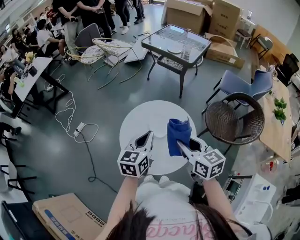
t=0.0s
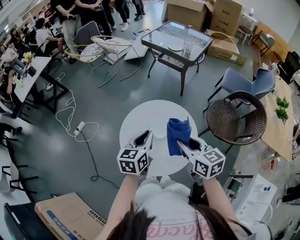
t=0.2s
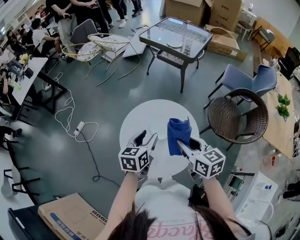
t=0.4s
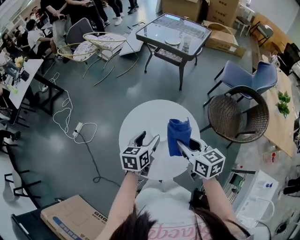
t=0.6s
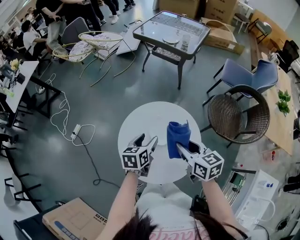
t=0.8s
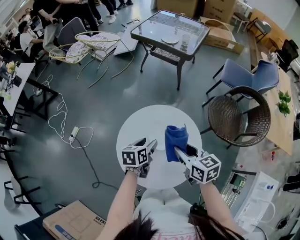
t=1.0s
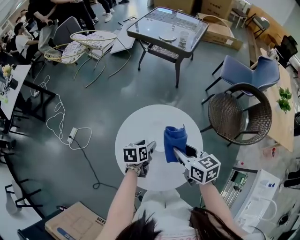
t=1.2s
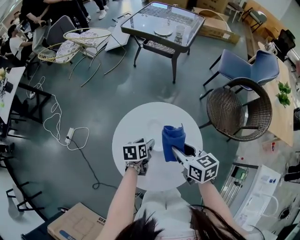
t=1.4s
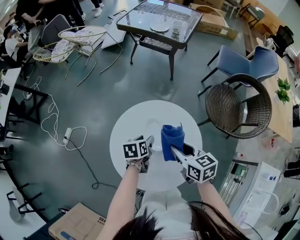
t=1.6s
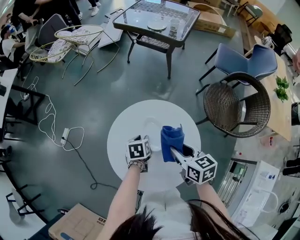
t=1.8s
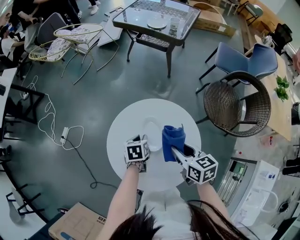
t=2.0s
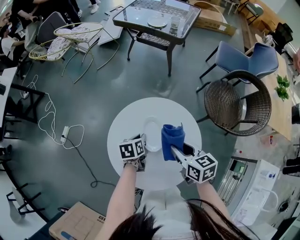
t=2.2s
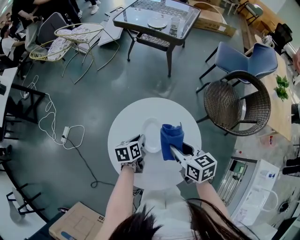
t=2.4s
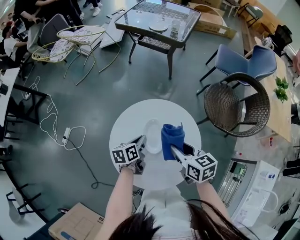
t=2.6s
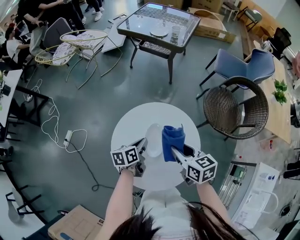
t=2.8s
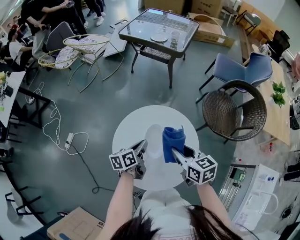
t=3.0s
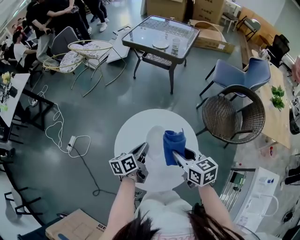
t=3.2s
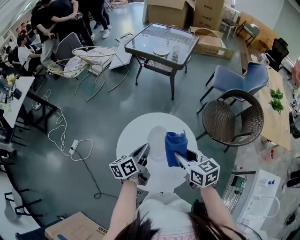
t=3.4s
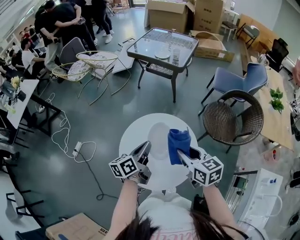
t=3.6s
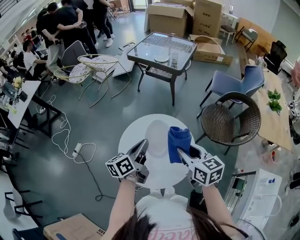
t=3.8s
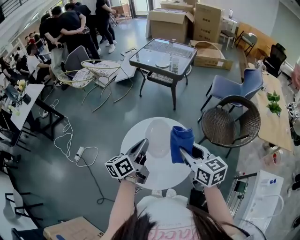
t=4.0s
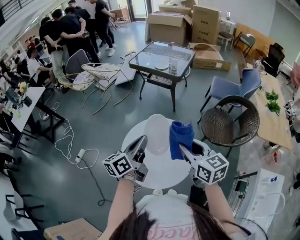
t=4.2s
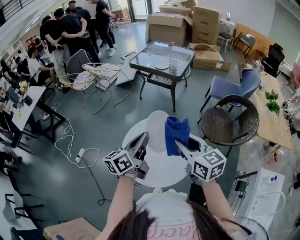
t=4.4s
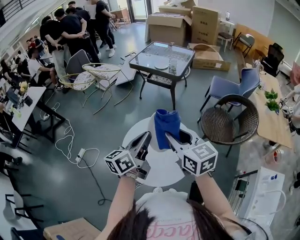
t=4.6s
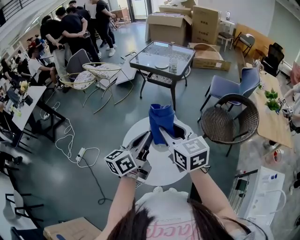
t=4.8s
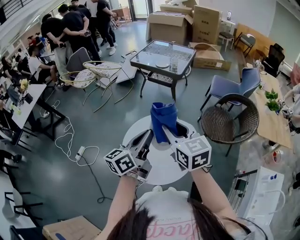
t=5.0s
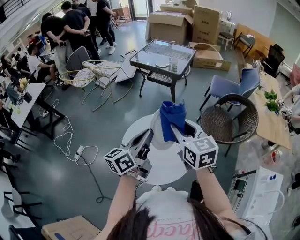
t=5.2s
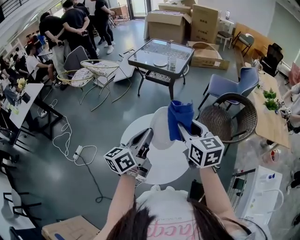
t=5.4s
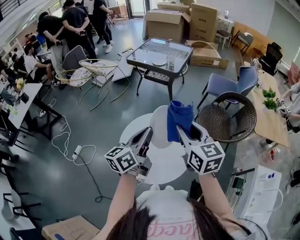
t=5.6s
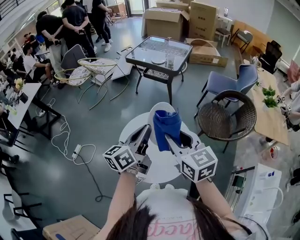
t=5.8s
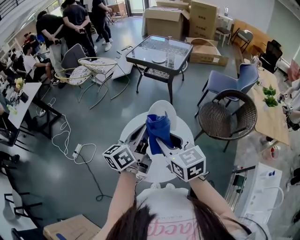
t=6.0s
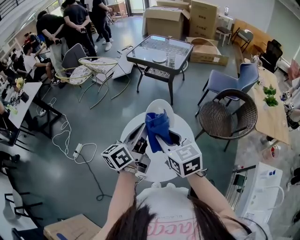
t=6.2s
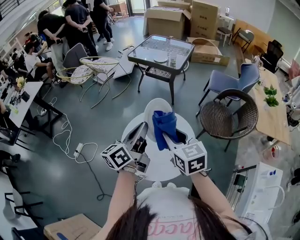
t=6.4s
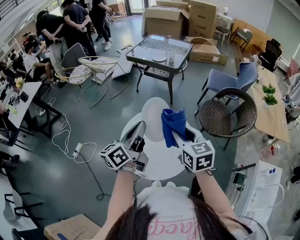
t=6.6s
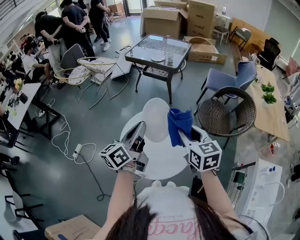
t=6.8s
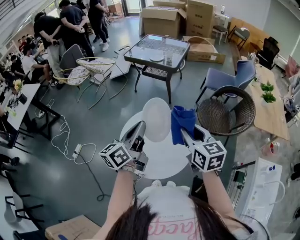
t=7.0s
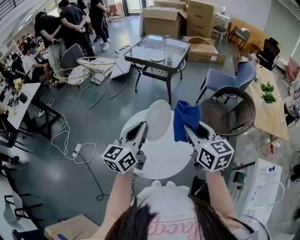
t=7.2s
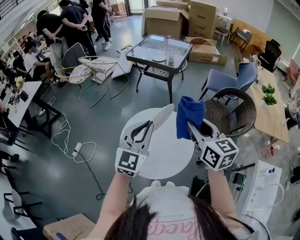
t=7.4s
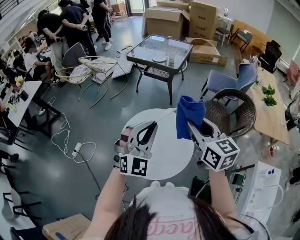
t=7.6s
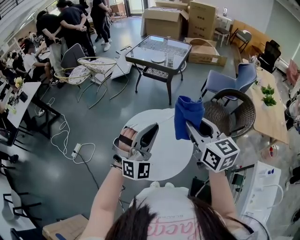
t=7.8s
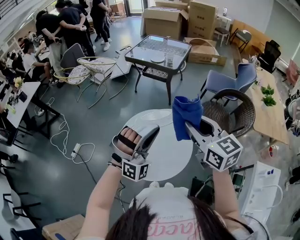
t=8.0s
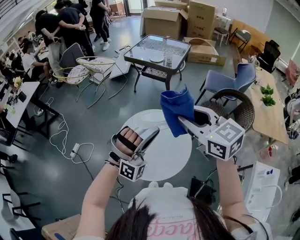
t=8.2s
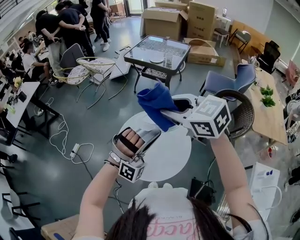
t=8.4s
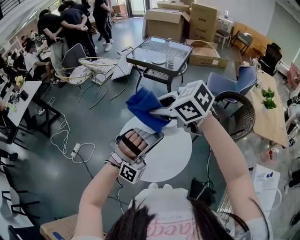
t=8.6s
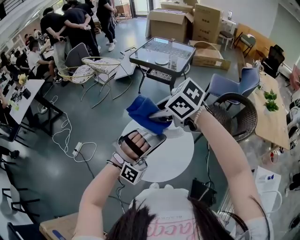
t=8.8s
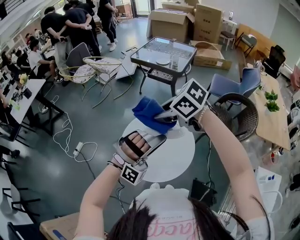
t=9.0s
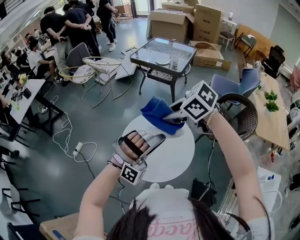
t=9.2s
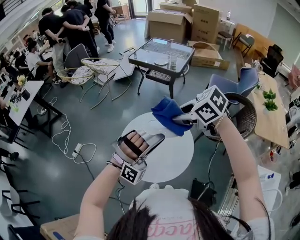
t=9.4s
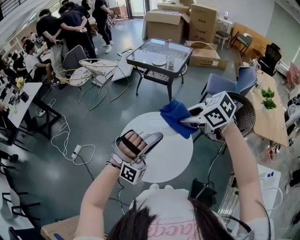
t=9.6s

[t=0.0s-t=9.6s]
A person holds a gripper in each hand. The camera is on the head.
t=0.0s to t=1.6s: The right gripper is displaced downward and forward by about 20 cm. The left gripper shifts roughly 30 cm downward and forward, tips its fingers downward by roughly 30 degrees, and opens its fingers.
t=1.6s to t=3.2s: The left gripper travels upward by about 10 cm, turns by some 30 degrees, and closes, while the right gripper moves upward, about 5 cm.
t=3.2s to t=4.8s: Both grippers move upward, approximately 20 cm. The right gripper rotates some 20 degrees, while the left gripper changes its angle by some 30 degrees.
t=4.8s to t=6.4s: The right gripper heads downward, covering some 5 cm, and travels to the right and back again, about 5 cm each way.
t=6.4s to t=8.0s: The right gripper moves upward and to the right, roughly 10 cm, while the left gripper travels to the right by roughly 5 cm, and twists roughly 130 degrees clockwise, seen from behind.
t=8.0s to t=9.6s: The right gripper goes to the left and returns, approximately 15 cm each way, and turns by some 50 degrees.

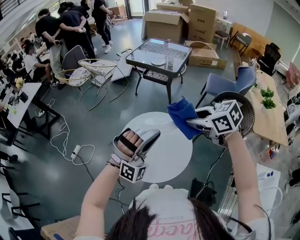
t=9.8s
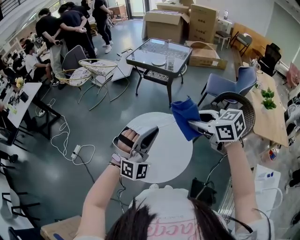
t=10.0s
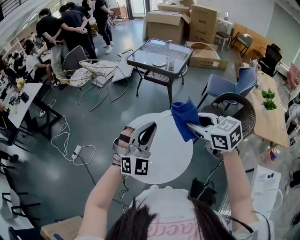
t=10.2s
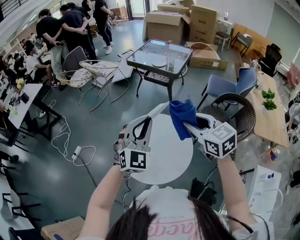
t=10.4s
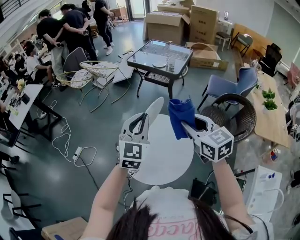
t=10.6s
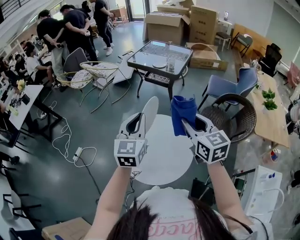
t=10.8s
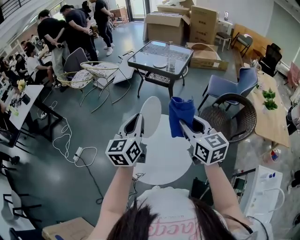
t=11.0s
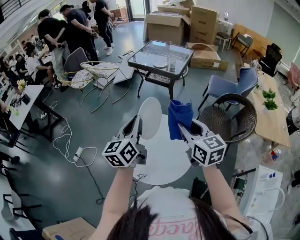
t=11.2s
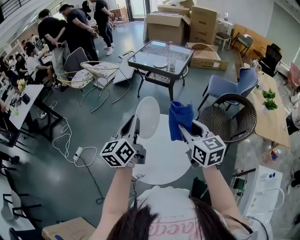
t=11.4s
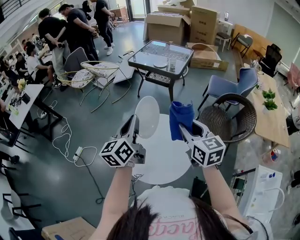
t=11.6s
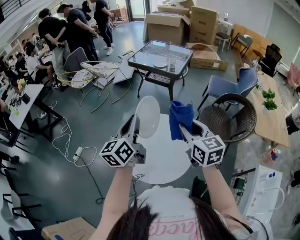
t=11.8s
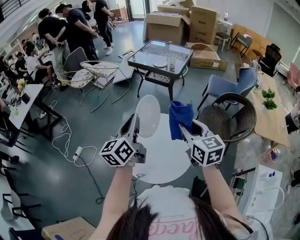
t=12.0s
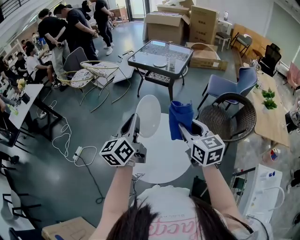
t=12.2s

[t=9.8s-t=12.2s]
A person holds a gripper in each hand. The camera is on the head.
t=9.8s to t=11.0s: The right gripper turns by roughly 40 degrees; the left gripper is displaced forward and to the left by approximately 10 cm, and rotates around the line of its fingers by approximately 100 degrees, counterclockwise from behind.
t=11.0s to t=12.2s: The grippers stay close to where they were, moving slightly.

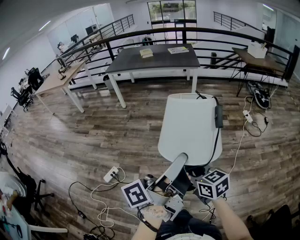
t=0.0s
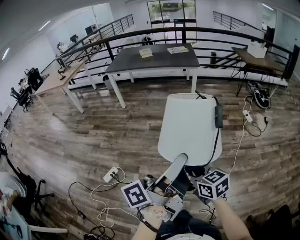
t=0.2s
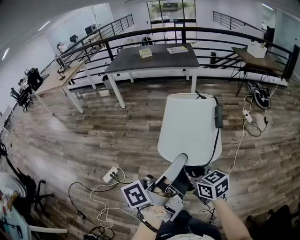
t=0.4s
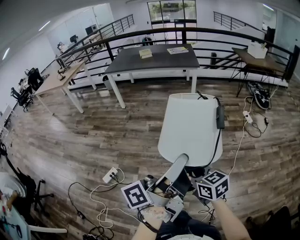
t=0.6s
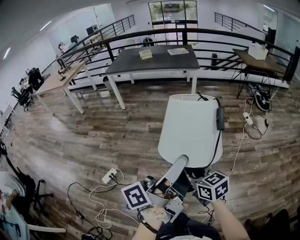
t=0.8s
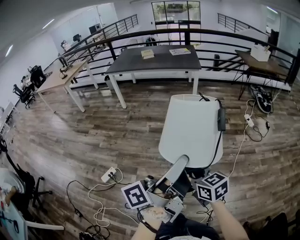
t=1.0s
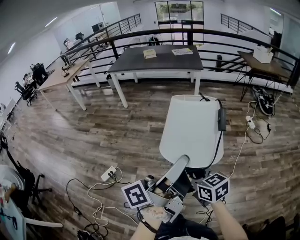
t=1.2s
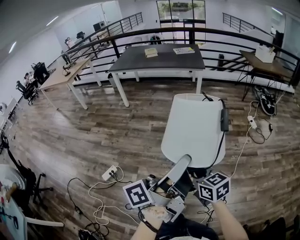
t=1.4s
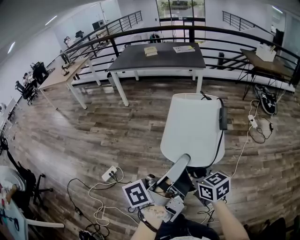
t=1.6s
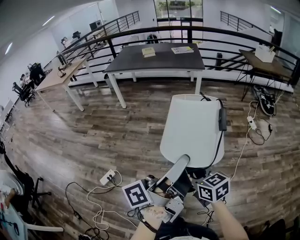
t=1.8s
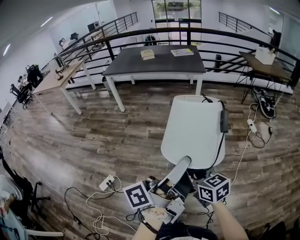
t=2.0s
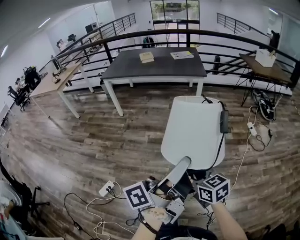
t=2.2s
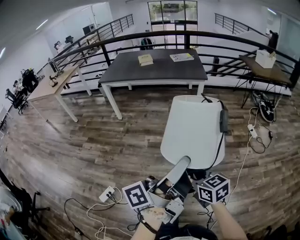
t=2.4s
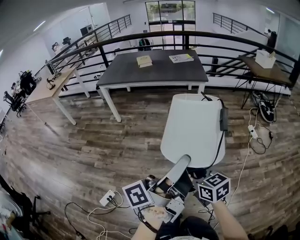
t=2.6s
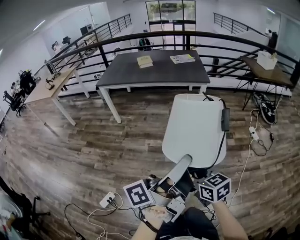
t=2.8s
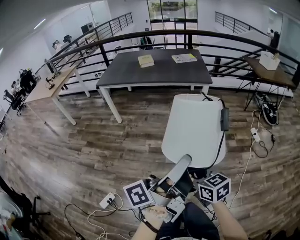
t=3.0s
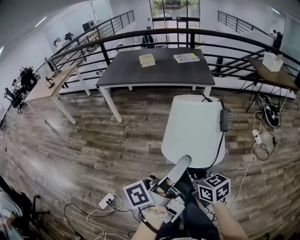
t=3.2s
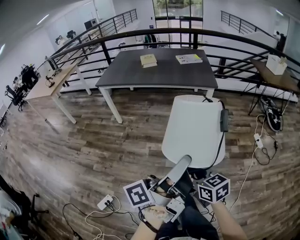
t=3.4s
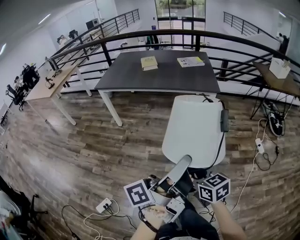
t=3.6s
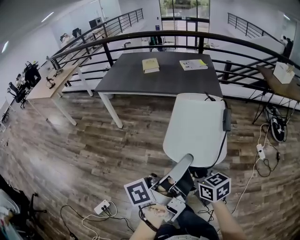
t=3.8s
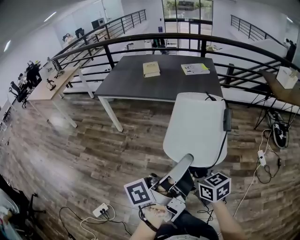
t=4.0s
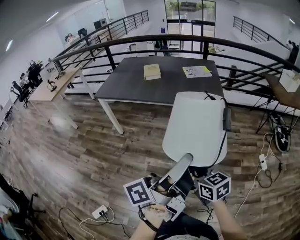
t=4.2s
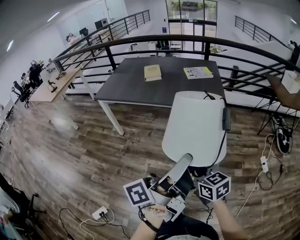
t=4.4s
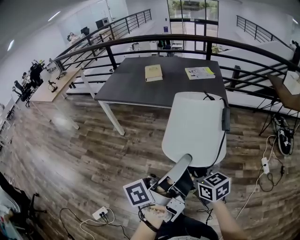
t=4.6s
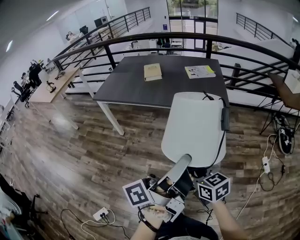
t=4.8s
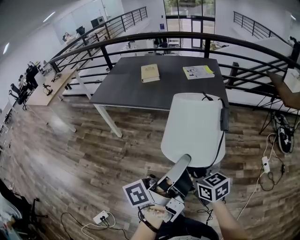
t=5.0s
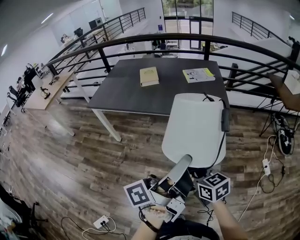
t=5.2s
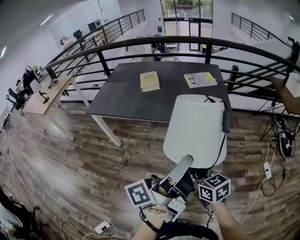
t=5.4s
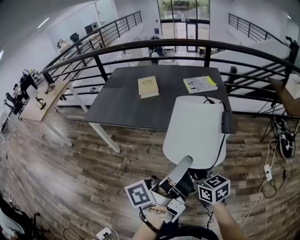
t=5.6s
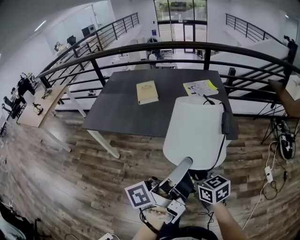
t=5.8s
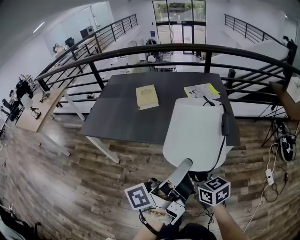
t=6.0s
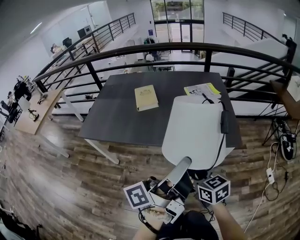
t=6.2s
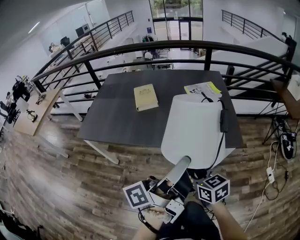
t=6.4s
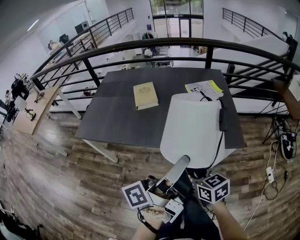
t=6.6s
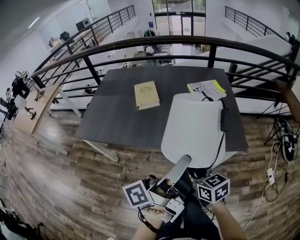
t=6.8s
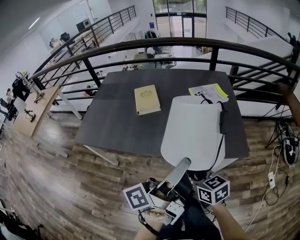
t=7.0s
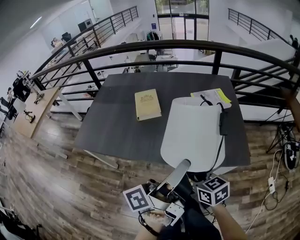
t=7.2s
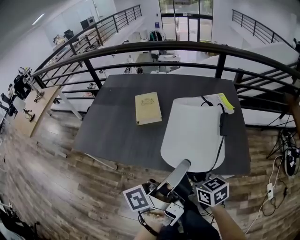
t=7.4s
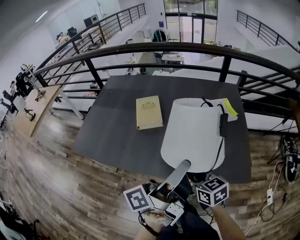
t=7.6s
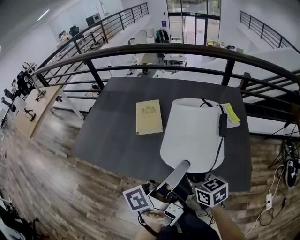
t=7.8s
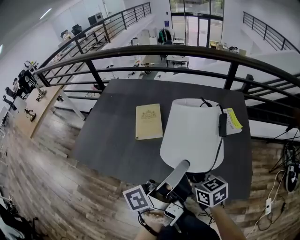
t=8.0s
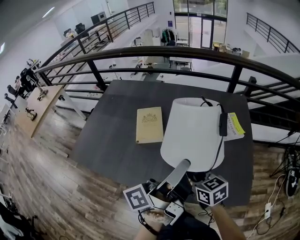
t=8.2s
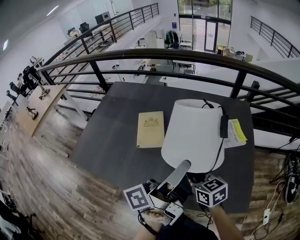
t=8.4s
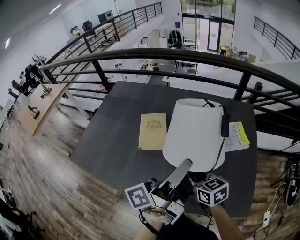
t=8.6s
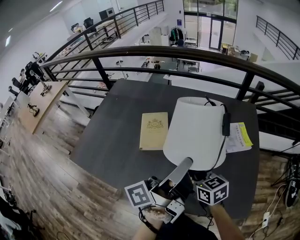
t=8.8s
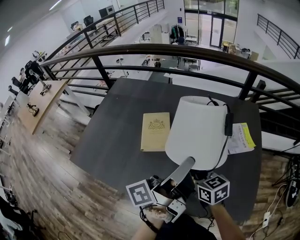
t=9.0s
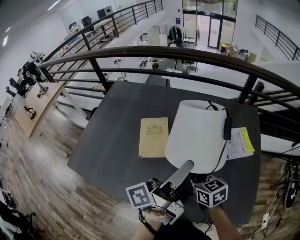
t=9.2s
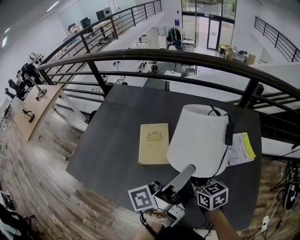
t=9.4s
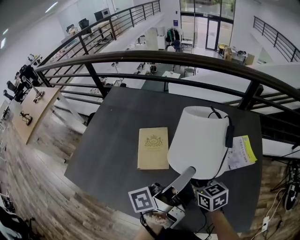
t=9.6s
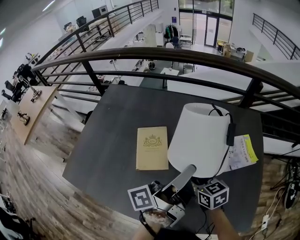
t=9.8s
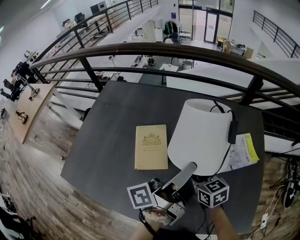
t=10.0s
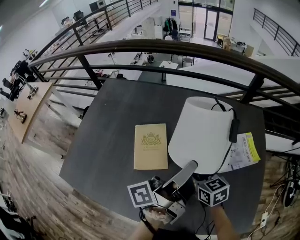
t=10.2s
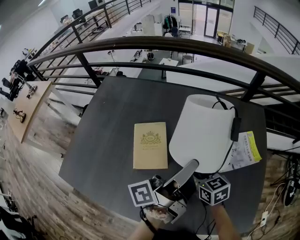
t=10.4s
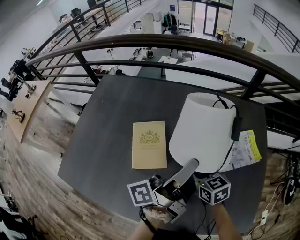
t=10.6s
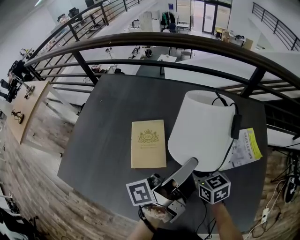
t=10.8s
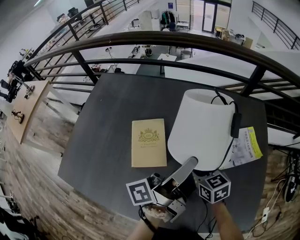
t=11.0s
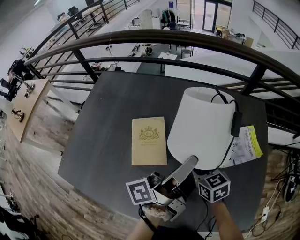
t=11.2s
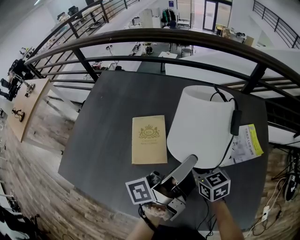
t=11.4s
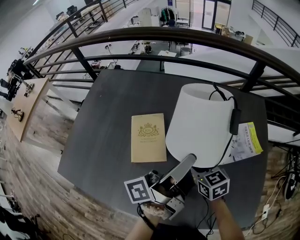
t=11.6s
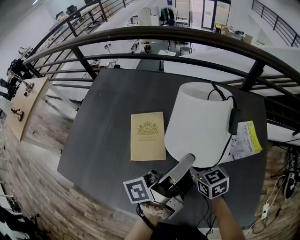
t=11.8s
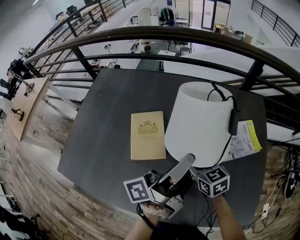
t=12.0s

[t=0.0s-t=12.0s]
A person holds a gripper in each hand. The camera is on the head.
t=0.0s to t=1.6s: The right gripper changes place by some 5 cm.
t=1.6s to t=3.0s: The right gripper ends up some 30 cm from where it was.
t=3.0s to t=4.4s: The right gripper ends up approximately 30 cm from where it was.
t=4.4s to t=6.0s: The right gripper moves roughly 30 cm.
t=6.0s to t=7.6s: The right gripper ends up about 25 cm from where it was.
t=7.6s to t=9.0s: The right gripper shifts by approximately 20 cm.
t=9.0s to t=10.4s: The right gripper shifts by roughly 15 cm.
